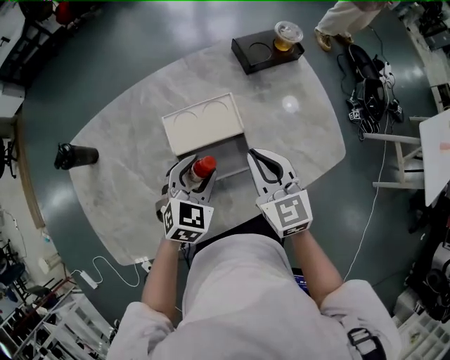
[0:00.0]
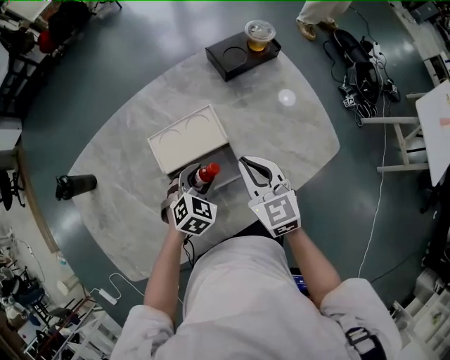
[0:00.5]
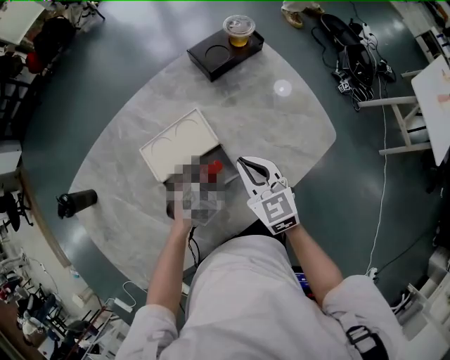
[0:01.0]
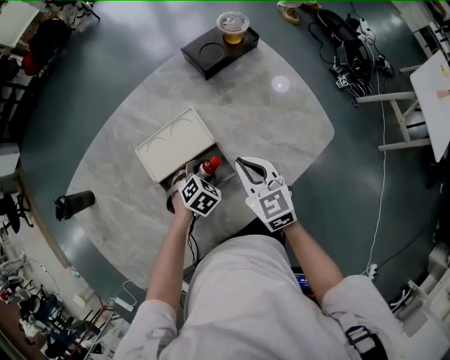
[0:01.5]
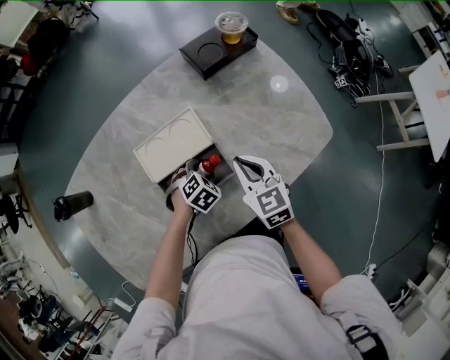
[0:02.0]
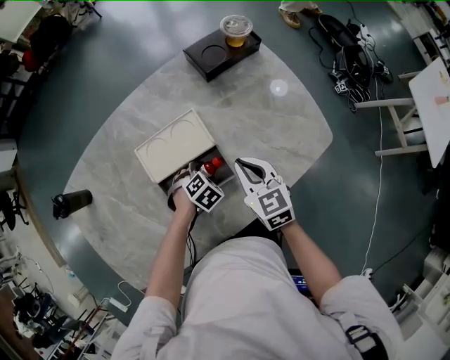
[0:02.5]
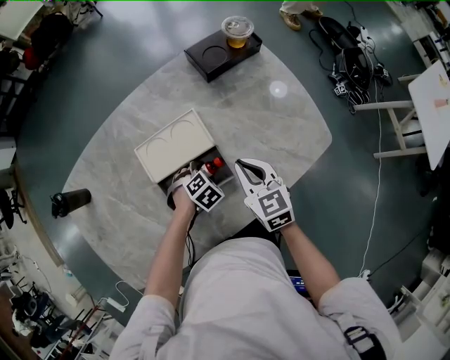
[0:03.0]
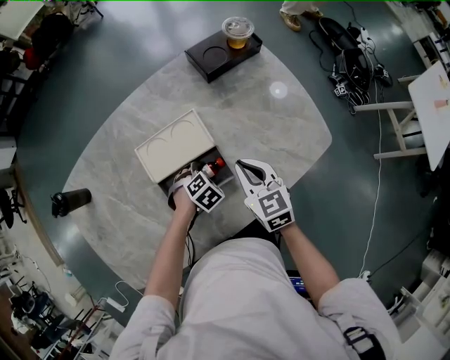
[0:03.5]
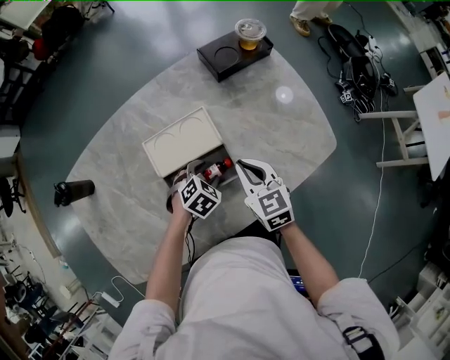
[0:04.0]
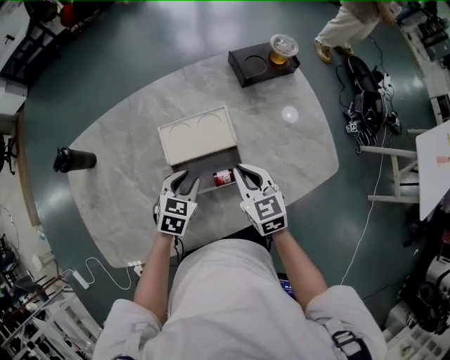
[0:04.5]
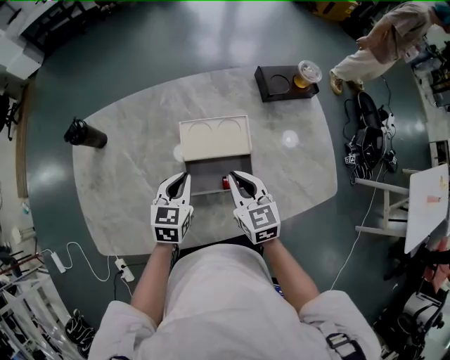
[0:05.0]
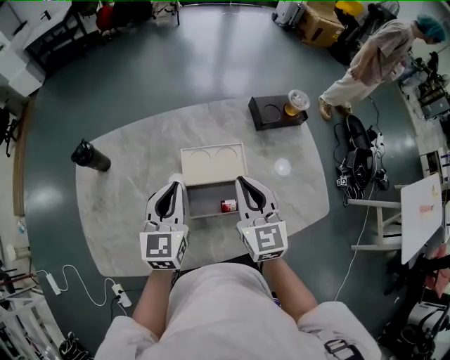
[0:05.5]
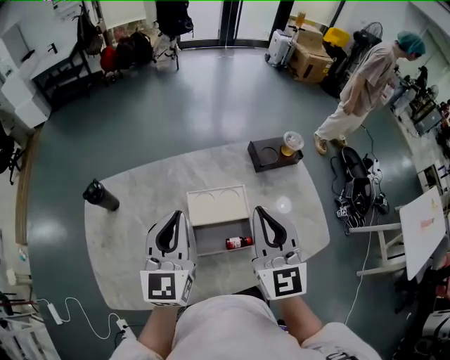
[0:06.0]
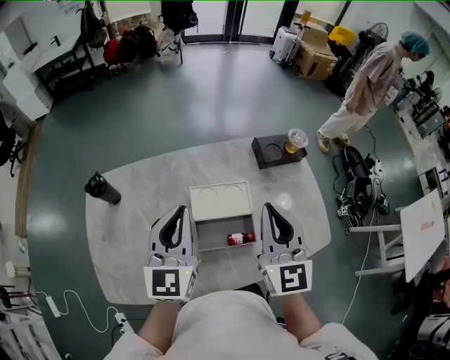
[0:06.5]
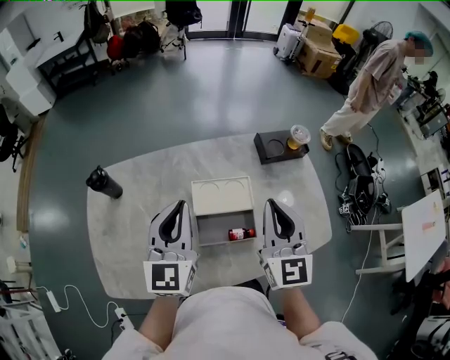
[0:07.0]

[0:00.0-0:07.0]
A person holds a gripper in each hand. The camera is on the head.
0:00.0 to 0:02.0: The left gripper shifts some 20 cm downward, and tips its fingers downward by approximately 30 degrees. Meanwhile the right gripper heads downward and to the right, covering some 10 cm.
0:02.0 to 0:03.5: The grippers make only small movements.
0:03.5 to 0:05.0: The right gripper ends up about 10 cm from where it was. The left gripper is displaced upward by roughly 20 cm, points its fingers some 40 degrees further upward, and closes its fingers.
0:05.0 to 0:07.0: Both grippers move upward, about 20 cm. The left gripper tilts its fingers some 30 degrees upward. The right gripper changes its angle by about 30 degrees.

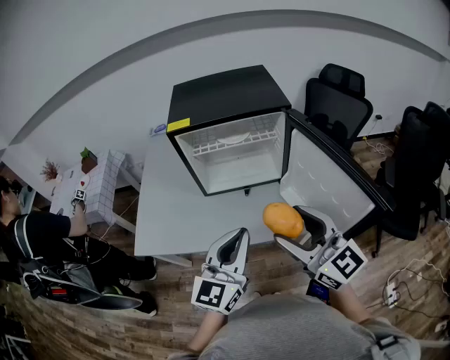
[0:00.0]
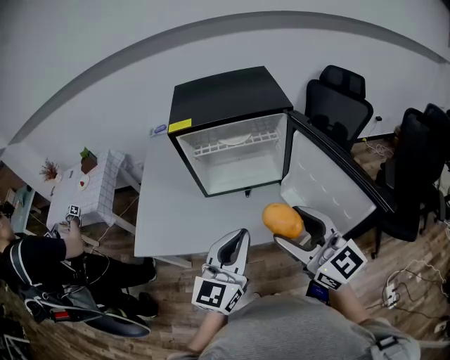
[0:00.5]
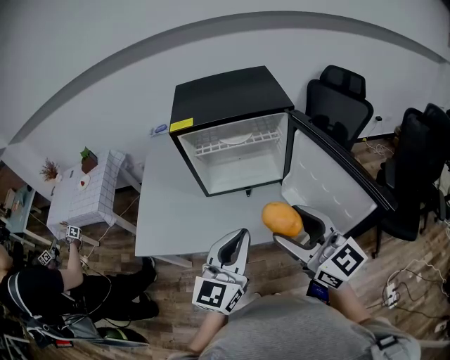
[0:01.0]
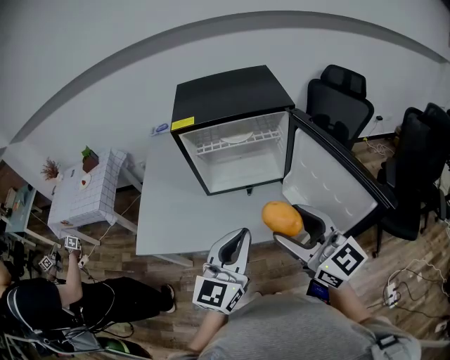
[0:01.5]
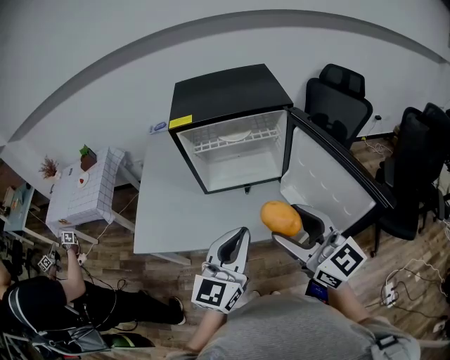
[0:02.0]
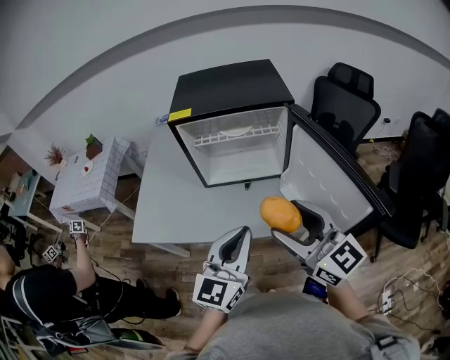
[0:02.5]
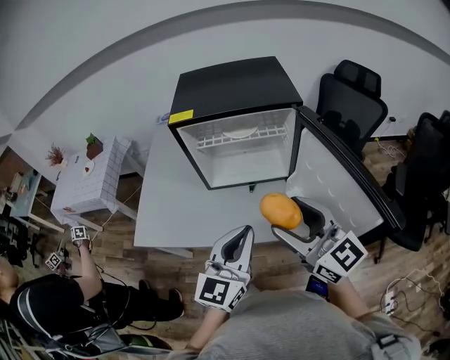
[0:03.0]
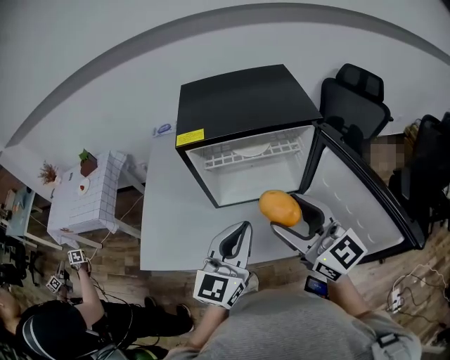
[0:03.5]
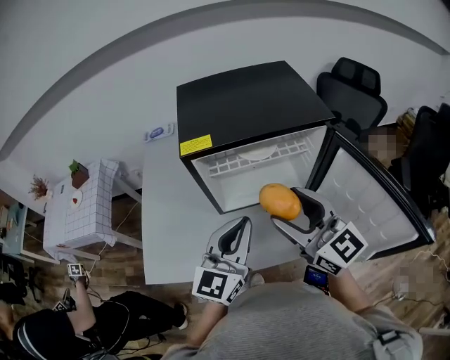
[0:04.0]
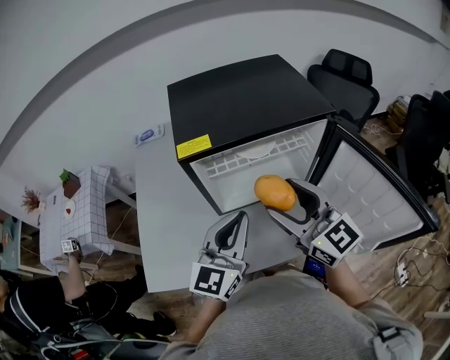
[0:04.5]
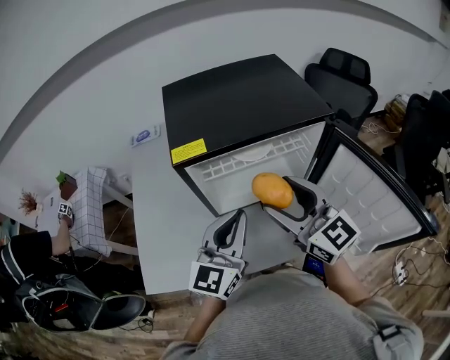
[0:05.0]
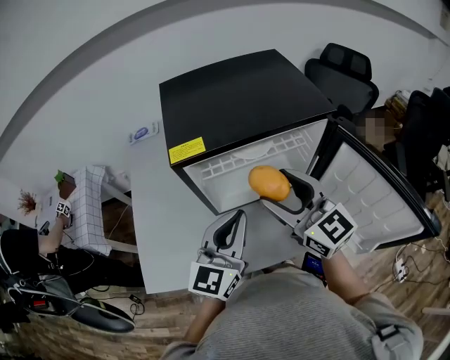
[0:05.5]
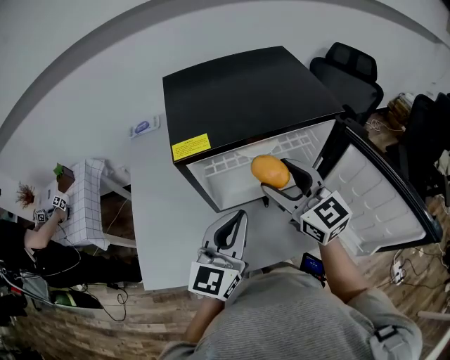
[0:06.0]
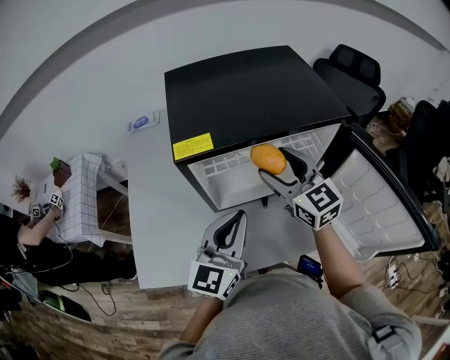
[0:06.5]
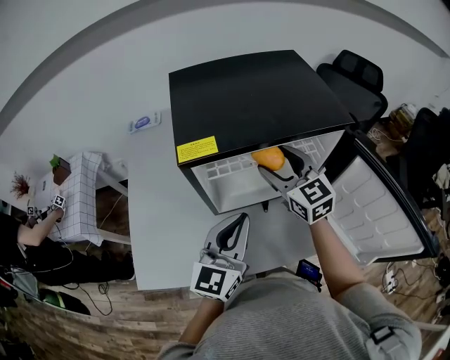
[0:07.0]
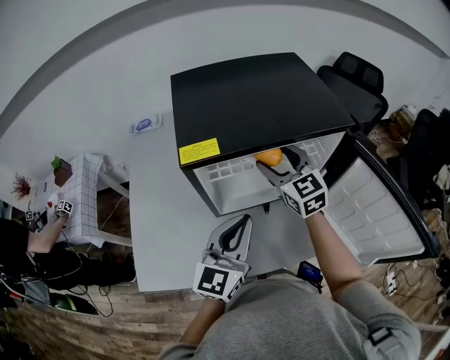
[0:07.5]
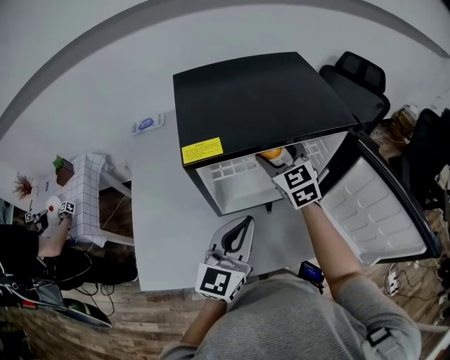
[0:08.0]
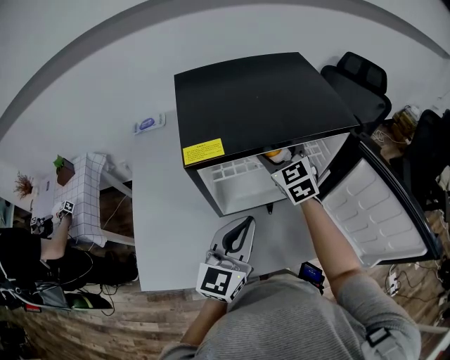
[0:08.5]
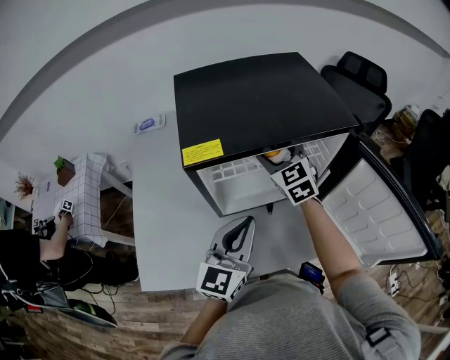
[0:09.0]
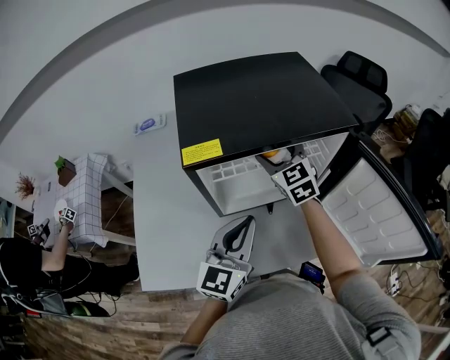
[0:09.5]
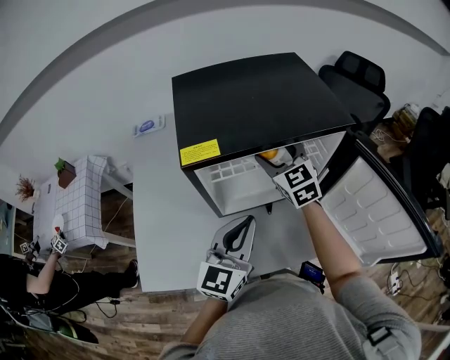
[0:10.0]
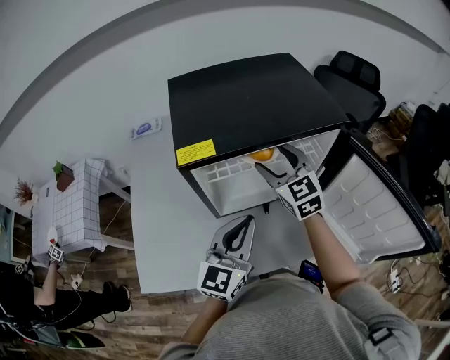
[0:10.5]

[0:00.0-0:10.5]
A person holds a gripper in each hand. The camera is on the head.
0:00.0 to 0:02.0: The grippers stay close to where they were, moving slightly.
0:02.0 to 0:04.0: The grippers both shift forward by some 20 cm.
0:04.0 to 0:06.5: The right gripper travels forward and downward by some 15 cm. Meanwhile the left gripper goes approximately 5 cm forward.
0:06.5 to 0:08.5: The right gripper goes about 10 cm forward and downward, and turns by some 20 degrees.
0:08.5 to 0:10.5: The right gripper moves approximately 5 cm.

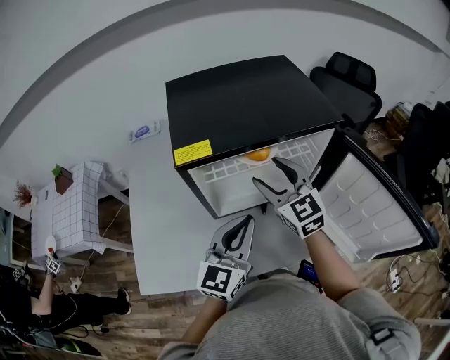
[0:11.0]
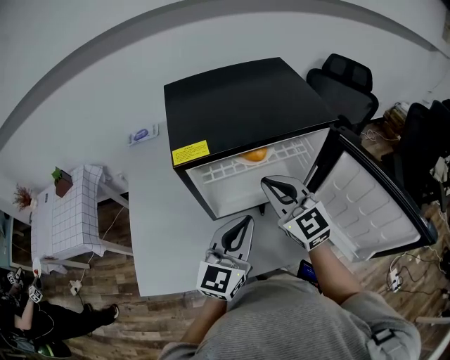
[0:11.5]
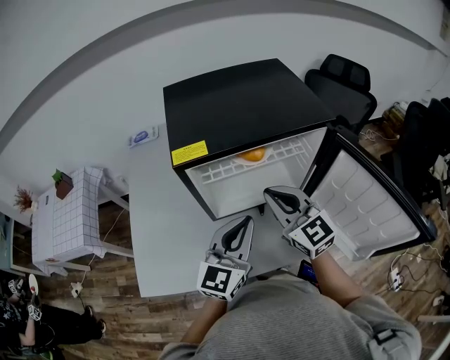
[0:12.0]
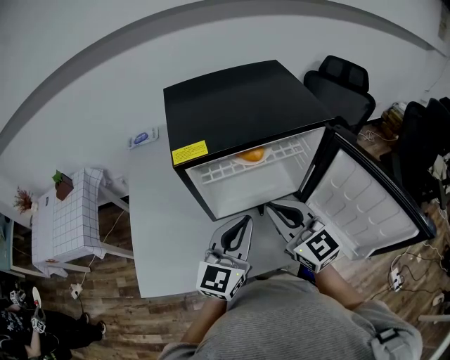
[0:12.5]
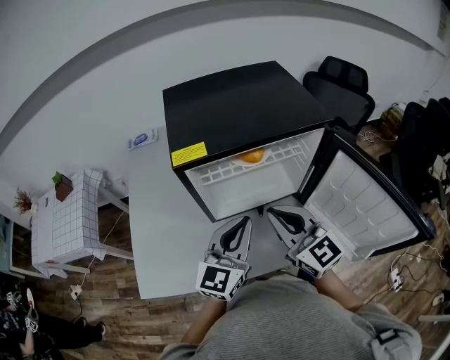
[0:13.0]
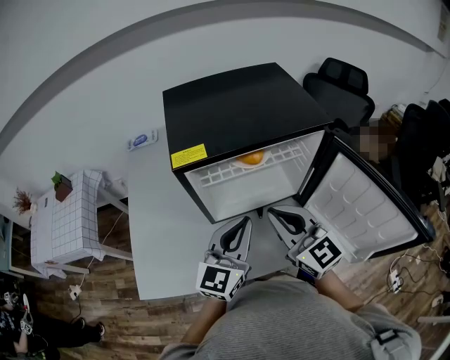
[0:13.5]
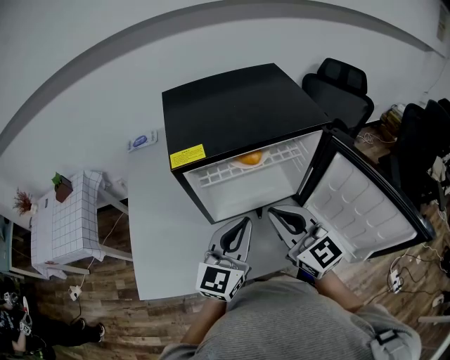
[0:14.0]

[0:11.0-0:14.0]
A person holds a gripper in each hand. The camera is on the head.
0:11.0 to 0:12.5: The right gripper is displaced backward by some 10 cm, and closes its fingers.
0:12.5 to 0:14.0: The grippers make only small movements.

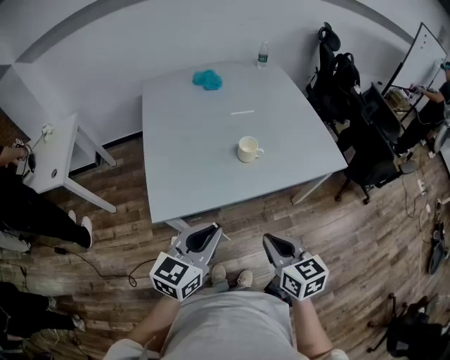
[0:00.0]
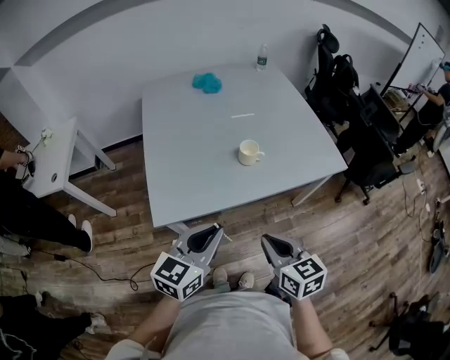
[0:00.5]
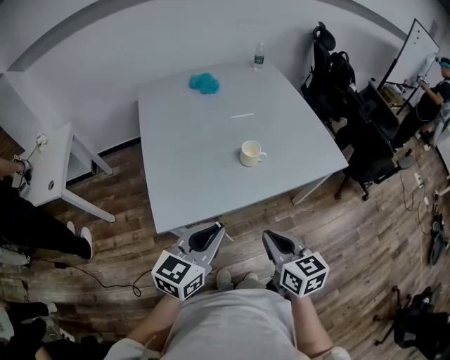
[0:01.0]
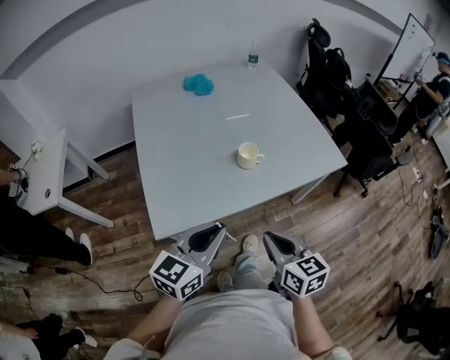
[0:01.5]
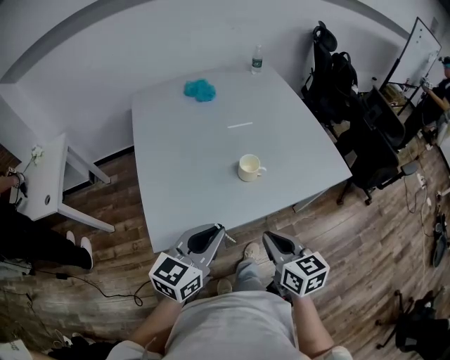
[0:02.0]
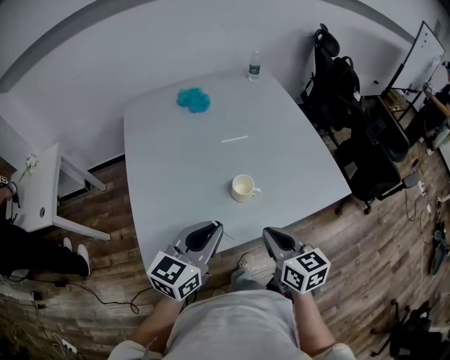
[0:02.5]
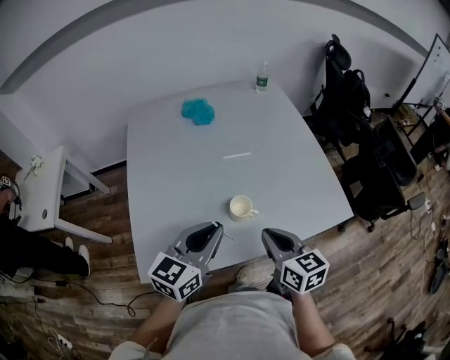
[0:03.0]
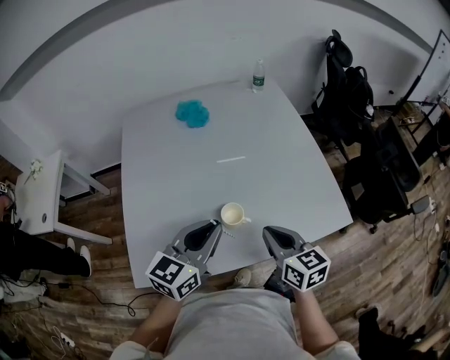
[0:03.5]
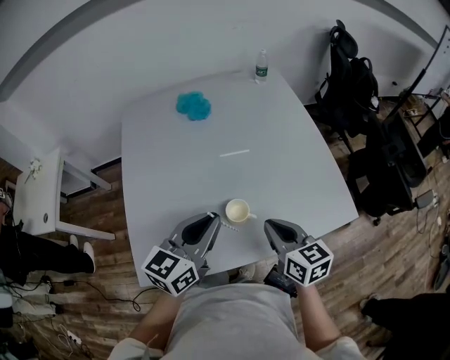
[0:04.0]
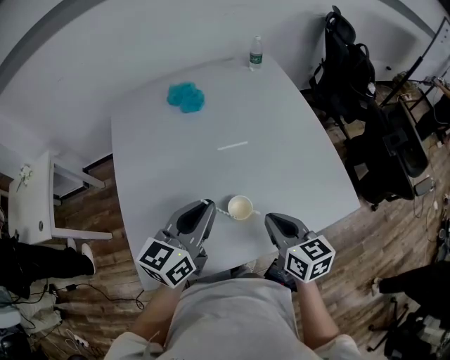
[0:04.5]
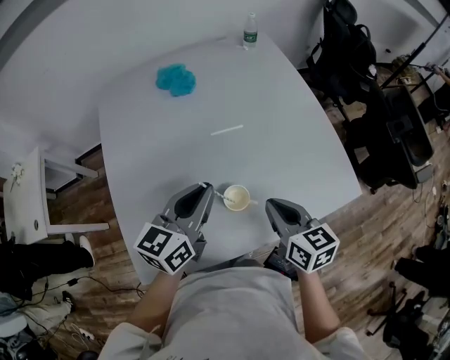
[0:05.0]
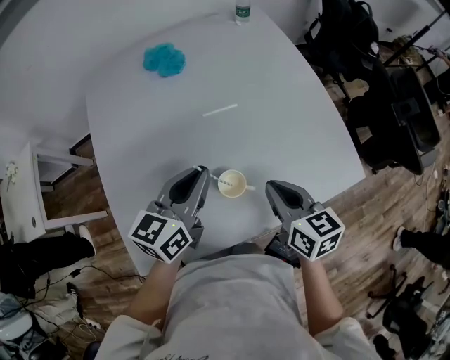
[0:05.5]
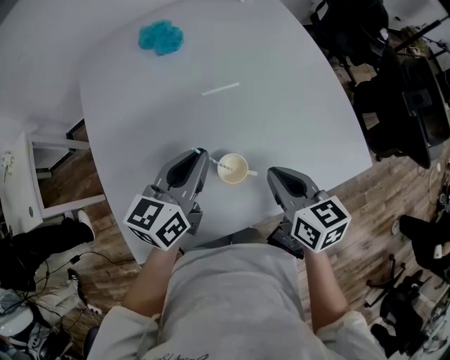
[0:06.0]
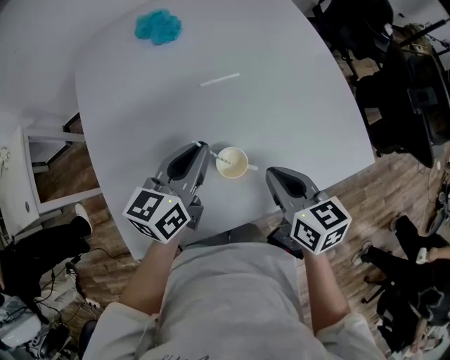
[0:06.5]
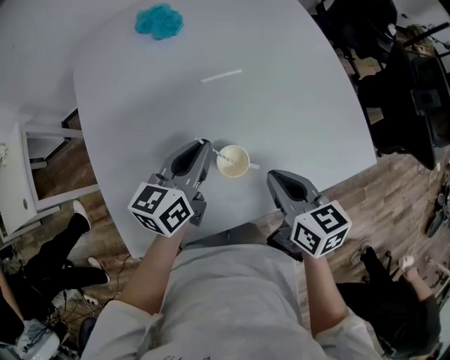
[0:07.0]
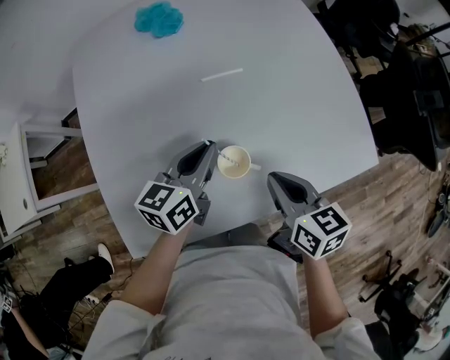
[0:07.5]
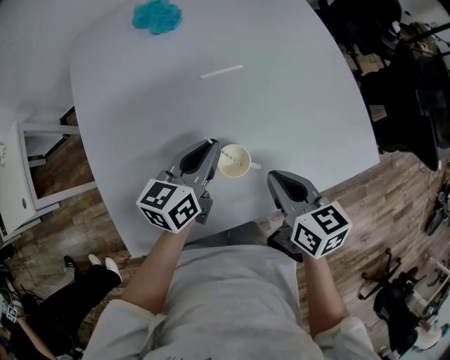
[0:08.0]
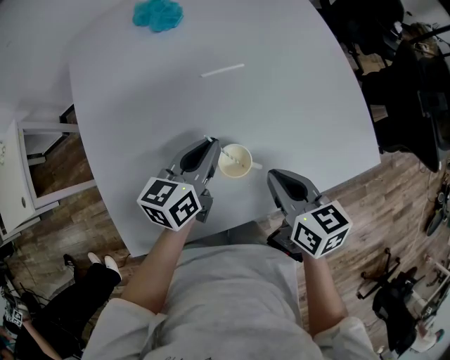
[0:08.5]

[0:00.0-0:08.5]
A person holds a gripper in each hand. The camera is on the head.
0:00.0 to 0:02.0: Both grippers travel together forward, roughly 10 cm.
0:02.0 to 0:04.0: The two grippers go roughly 25 cm forward.
0:04.0 to 0:06.5: The right gripper shifts roughly 5 cm downward; the left gripper shifts some 15 cm downward and forward.
0:06.5 to 0:08.5: The left gripper is displaced downward by roughly 5 cm.
